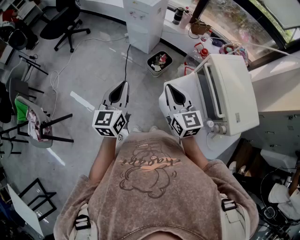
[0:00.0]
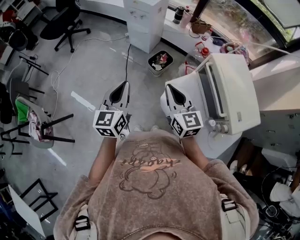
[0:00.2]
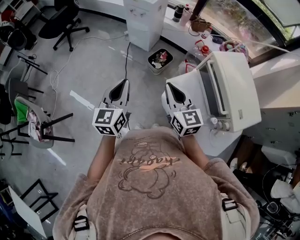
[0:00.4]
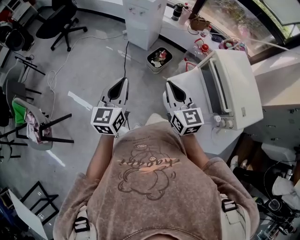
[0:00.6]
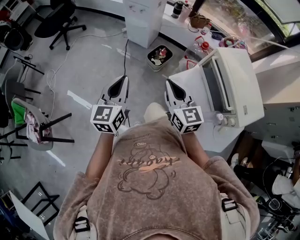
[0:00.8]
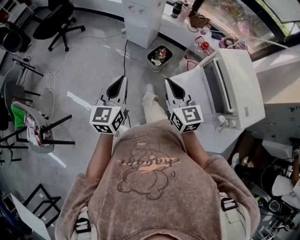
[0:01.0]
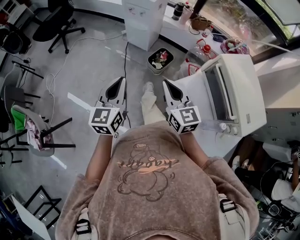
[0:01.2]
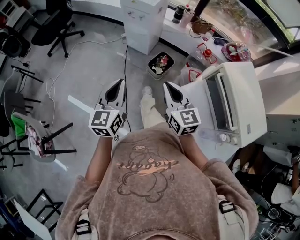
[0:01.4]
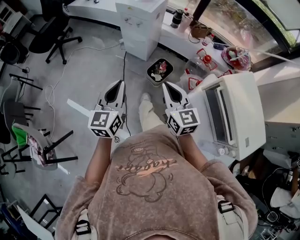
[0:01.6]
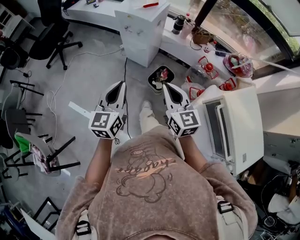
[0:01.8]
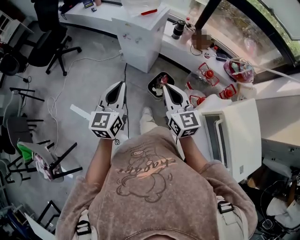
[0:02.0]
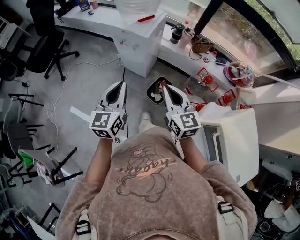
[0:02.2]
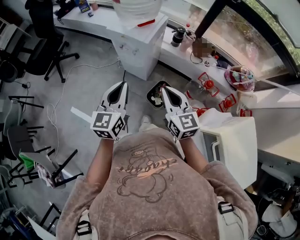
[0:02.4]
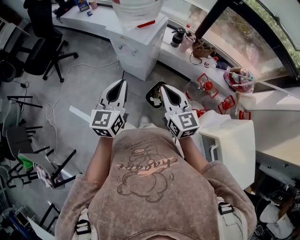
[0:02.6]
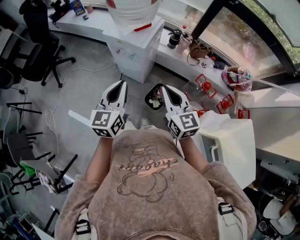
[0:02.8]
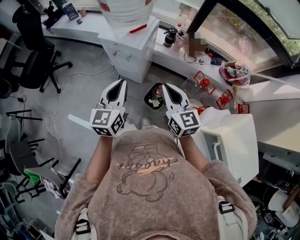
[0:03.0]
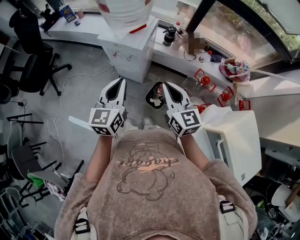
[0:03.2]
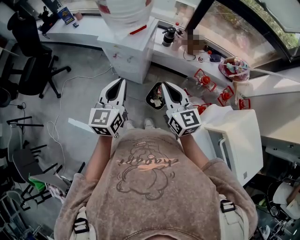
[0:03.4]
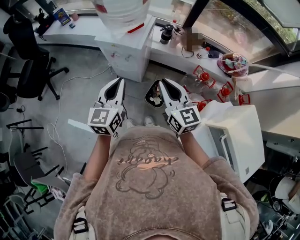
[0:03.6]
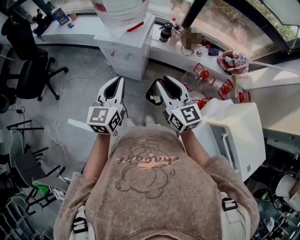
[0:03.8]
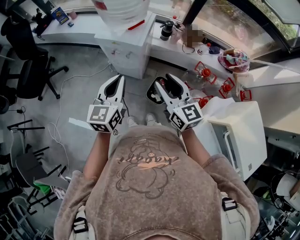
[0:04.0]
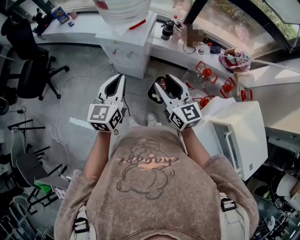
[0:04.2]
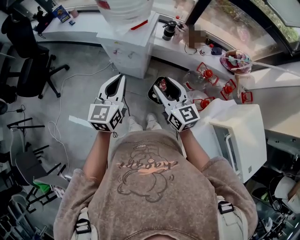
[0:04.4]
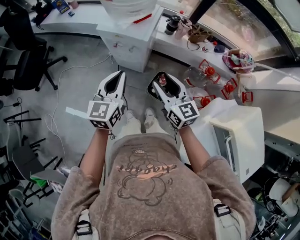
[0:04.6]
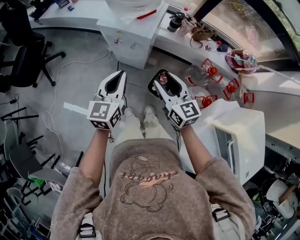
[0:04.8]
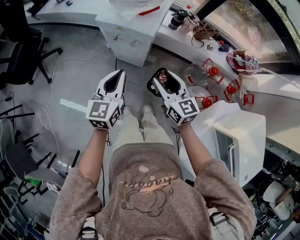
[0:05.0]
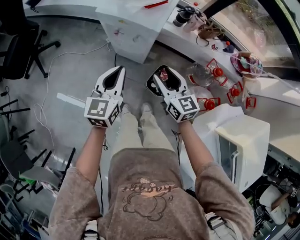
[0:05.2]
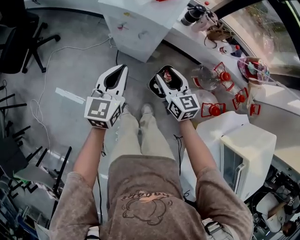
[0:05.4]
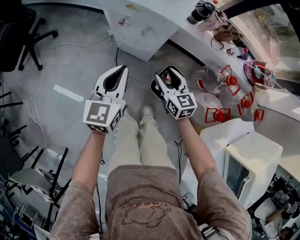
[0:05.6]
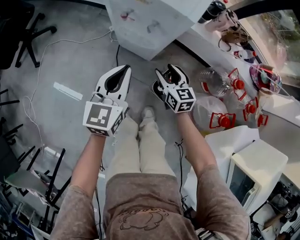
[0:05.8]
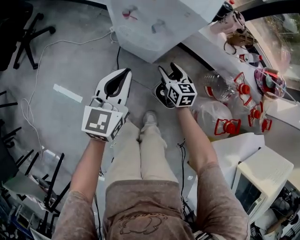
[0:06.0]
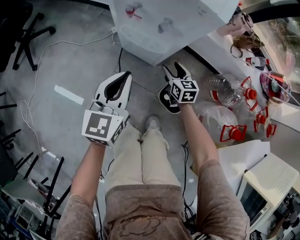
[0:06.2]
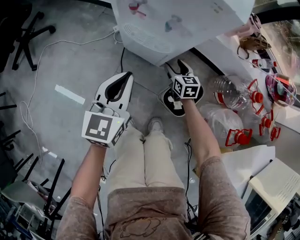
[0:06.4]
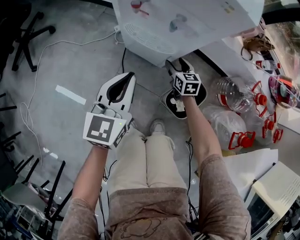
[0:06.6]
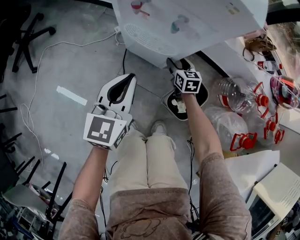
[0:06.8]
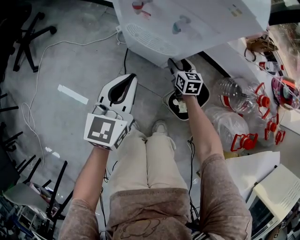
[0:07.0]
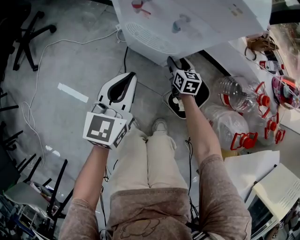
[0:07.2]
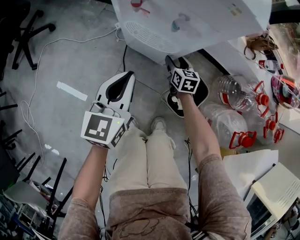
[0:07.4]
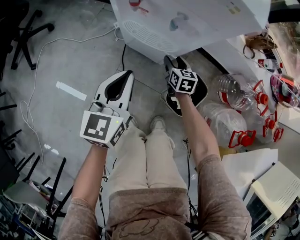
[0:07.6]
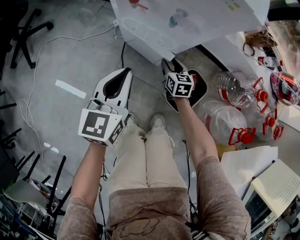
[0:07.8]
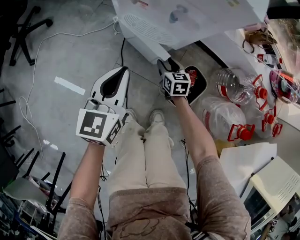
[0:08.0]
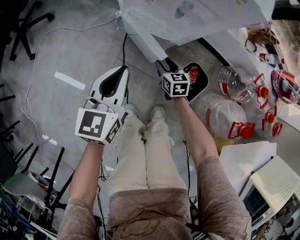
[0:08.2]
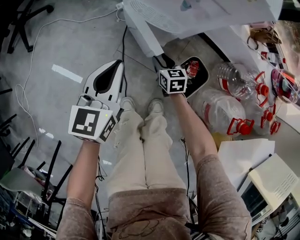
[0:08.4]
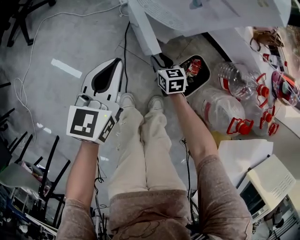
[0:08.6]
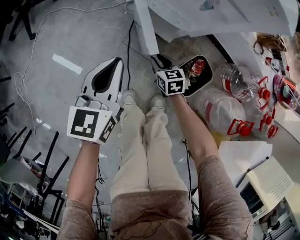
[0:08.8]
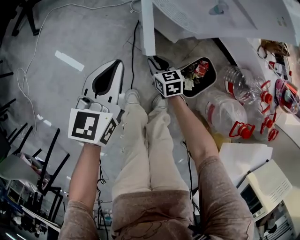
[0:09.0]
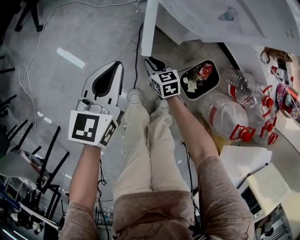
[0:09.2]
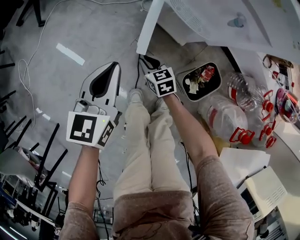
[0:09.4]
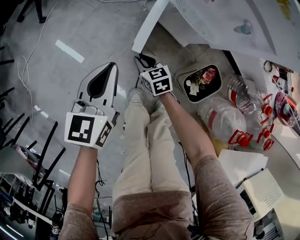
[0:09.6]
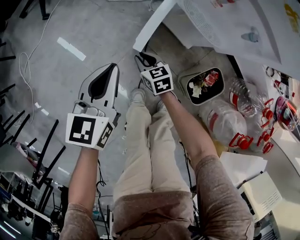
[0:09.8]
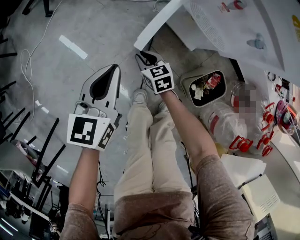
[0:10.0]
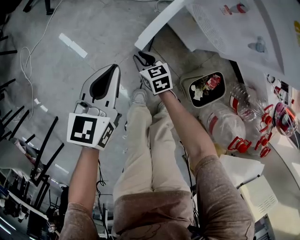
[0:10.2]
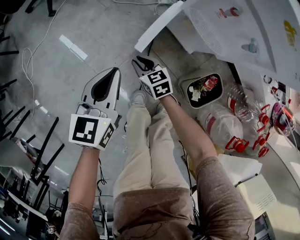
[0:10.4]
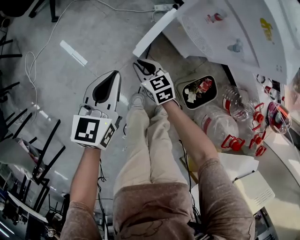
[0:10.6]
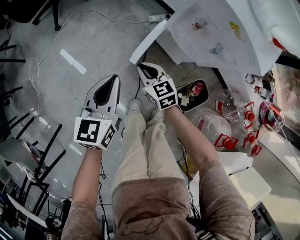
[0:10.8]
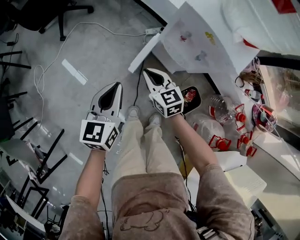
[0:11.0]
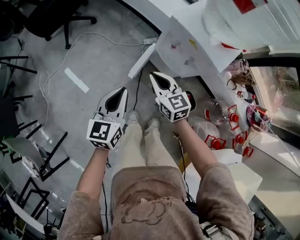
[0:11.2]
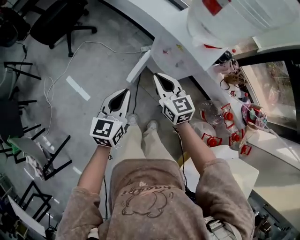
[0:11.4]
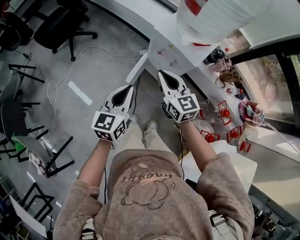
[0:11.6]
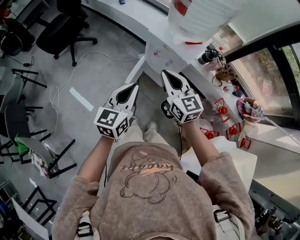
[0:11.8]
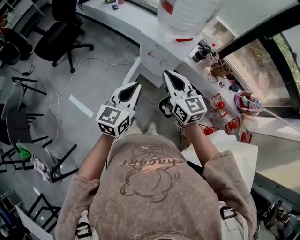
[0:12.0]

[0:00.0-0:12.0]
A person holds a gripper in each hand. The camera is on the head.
0:00.0 to 0:01.6: The two grippers go roughly 15 cm forward.
0:01.6 to 0:03.0: The two grippers go about 30 cm forward.
0:03.0 to 0:04.4: The left gripper ends up approximately 5 cm from where it was. The right gripper moves to the left, roughly 5 cm, and opens its fingers.
0:04.4 to 0:06.0: The left gripper shifts roughly 30 cm downward; the right gripper moves downward, roughly 50 cm, and swivels some 20 degrees.
0:06.0 to 0:07.6: The right gripper moves downward and forward, roughly 15 cm. Meanwhile the left gripper travels downward by about 10 cm.
0:07.6 to 0:09.0: The left gripper is displaced to the left and backward by approximately 10 cm. Meanwhile the right gripper travels to the left and backward by about 20 cm, swivels about 30 degrees, and closes.
0:09.0 to 0:10.4: The right gripper is displaced to the left by about 15 cm. The left gripper travels to the left by approximately 10 cm.
0:10.4 to 0:12.0: The left gripper shifts about 40 cm upward, and swivels some 20 degrees; the right gripper is displaced upward by roughly 60 cm, and tilts its fingers about 30 degrees upward.

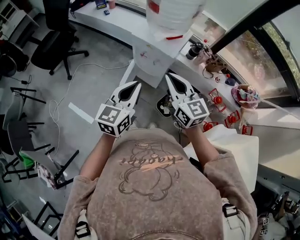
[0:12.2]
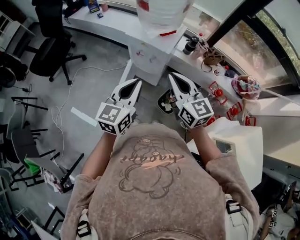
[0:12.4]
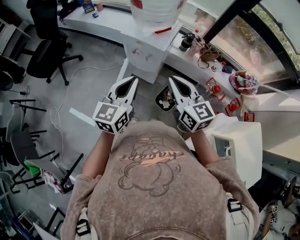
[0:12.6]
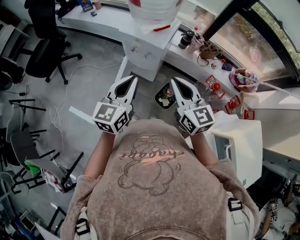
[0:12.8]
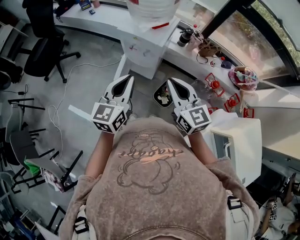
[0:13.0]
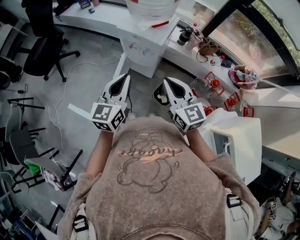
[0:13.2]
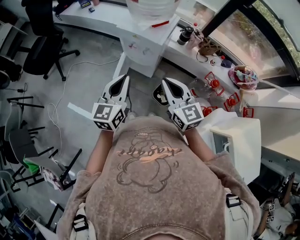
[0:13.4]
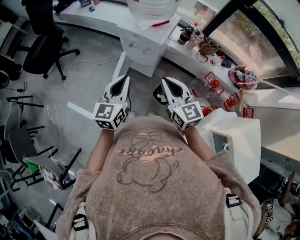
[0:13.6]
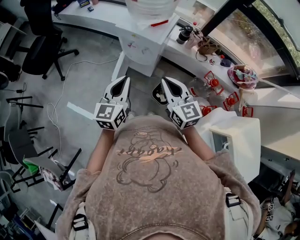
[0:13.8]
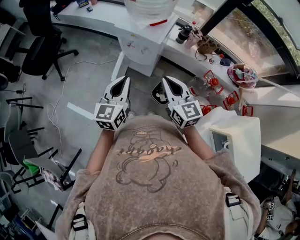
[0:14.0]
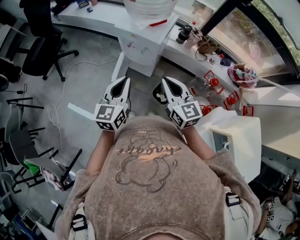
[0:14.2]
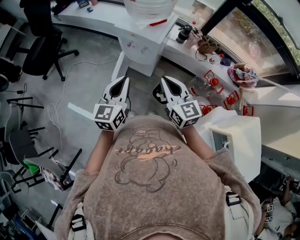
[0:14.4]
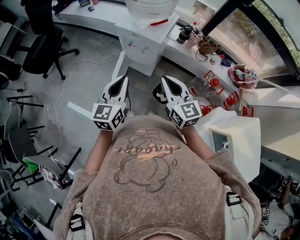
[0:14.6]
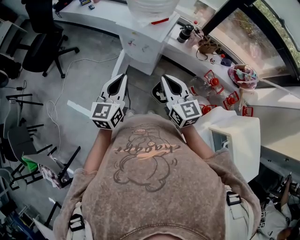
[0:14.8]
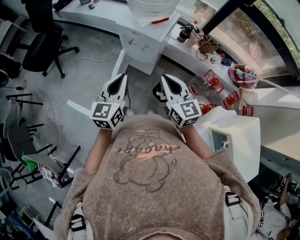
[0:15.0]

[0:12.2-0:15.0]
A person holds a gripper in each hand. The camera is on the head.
0:12.2 to 0:13.6: The right gripper ends up approximately 10 cm from where it was.
0:13.6 to 0:15.0: The grippers stay close to where they were, moving slightly.

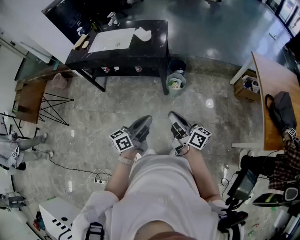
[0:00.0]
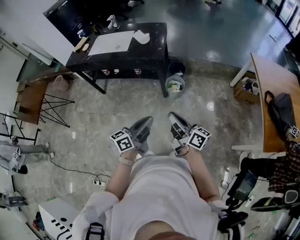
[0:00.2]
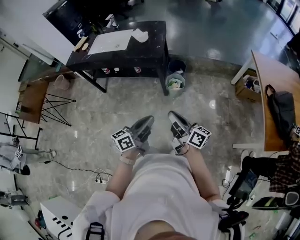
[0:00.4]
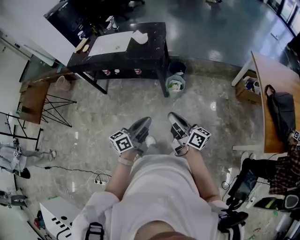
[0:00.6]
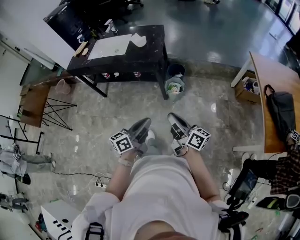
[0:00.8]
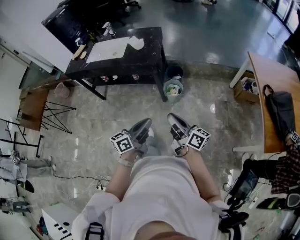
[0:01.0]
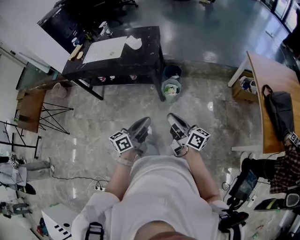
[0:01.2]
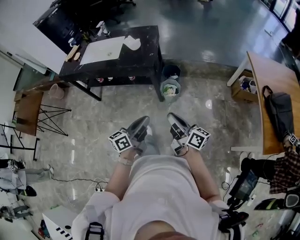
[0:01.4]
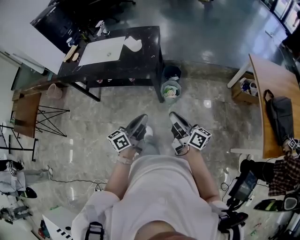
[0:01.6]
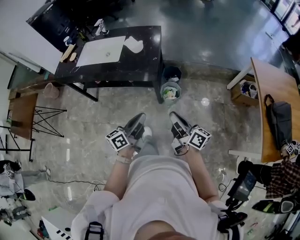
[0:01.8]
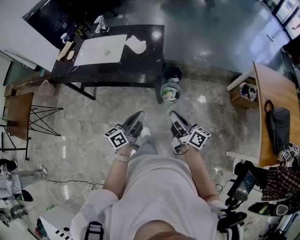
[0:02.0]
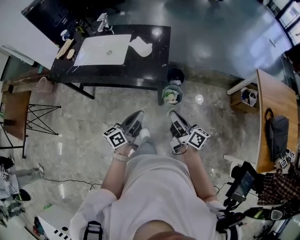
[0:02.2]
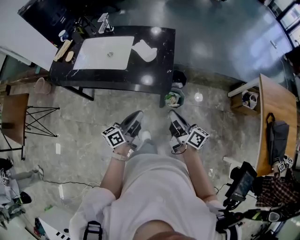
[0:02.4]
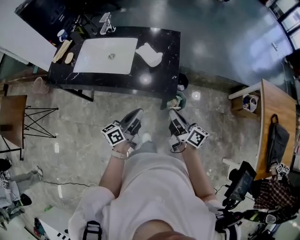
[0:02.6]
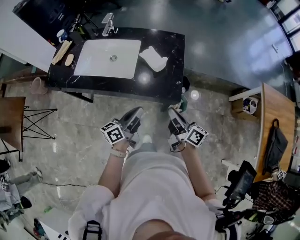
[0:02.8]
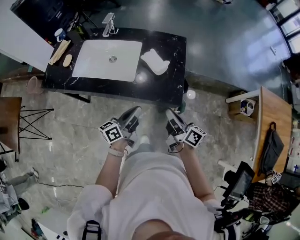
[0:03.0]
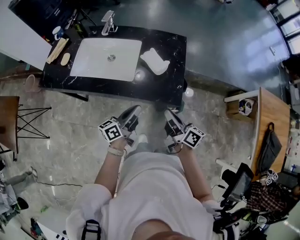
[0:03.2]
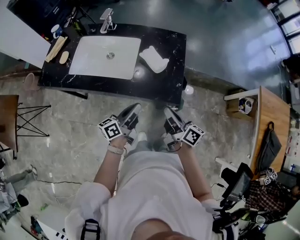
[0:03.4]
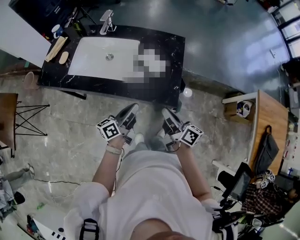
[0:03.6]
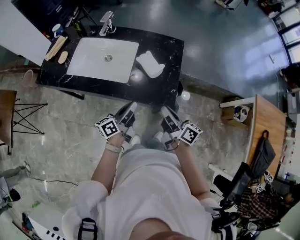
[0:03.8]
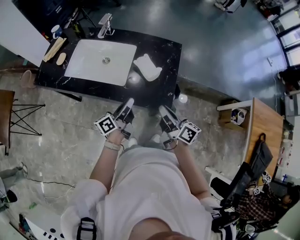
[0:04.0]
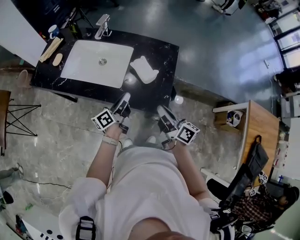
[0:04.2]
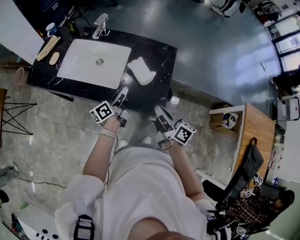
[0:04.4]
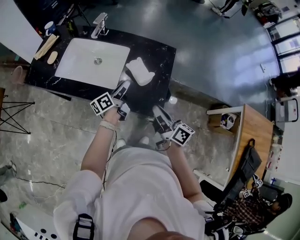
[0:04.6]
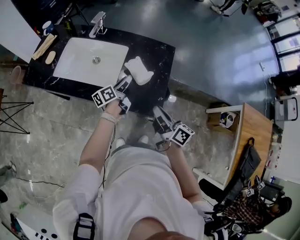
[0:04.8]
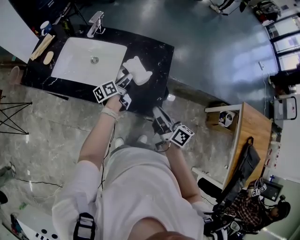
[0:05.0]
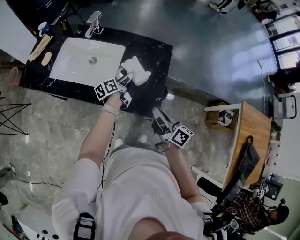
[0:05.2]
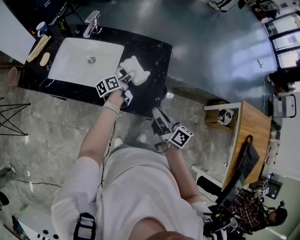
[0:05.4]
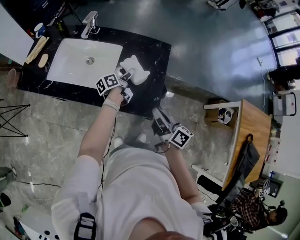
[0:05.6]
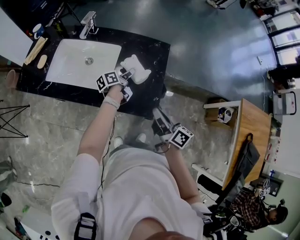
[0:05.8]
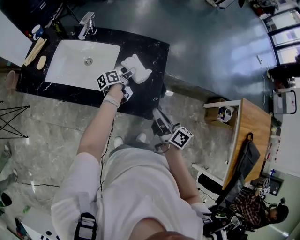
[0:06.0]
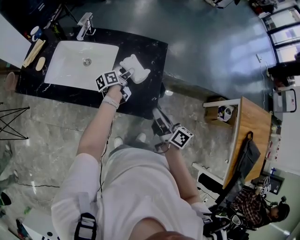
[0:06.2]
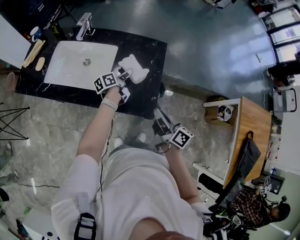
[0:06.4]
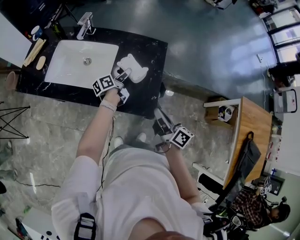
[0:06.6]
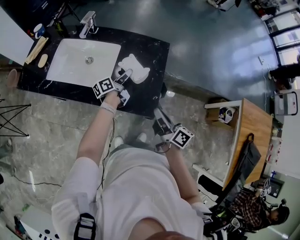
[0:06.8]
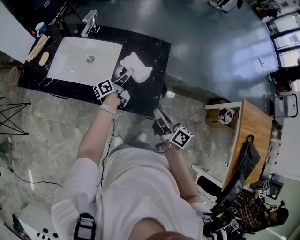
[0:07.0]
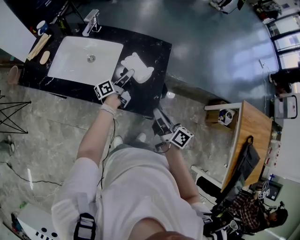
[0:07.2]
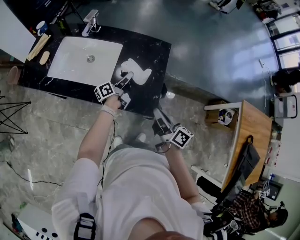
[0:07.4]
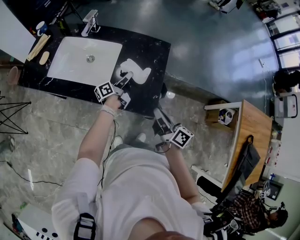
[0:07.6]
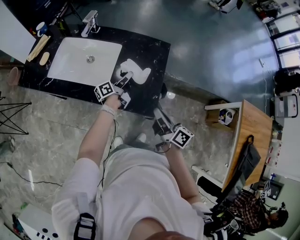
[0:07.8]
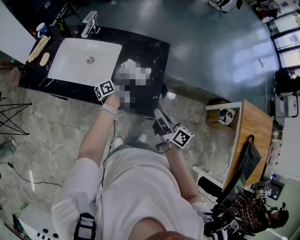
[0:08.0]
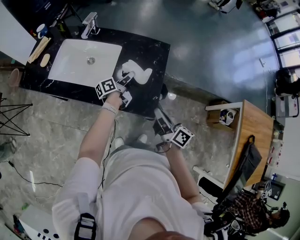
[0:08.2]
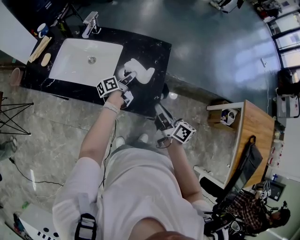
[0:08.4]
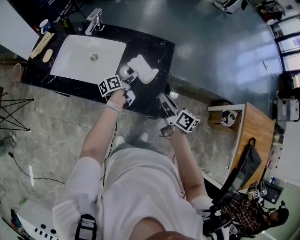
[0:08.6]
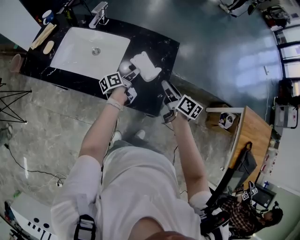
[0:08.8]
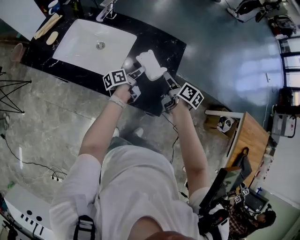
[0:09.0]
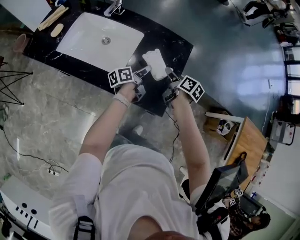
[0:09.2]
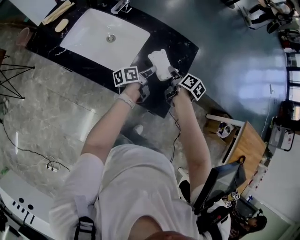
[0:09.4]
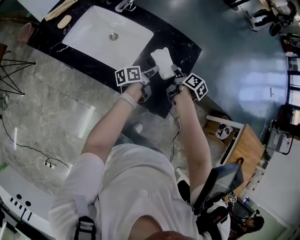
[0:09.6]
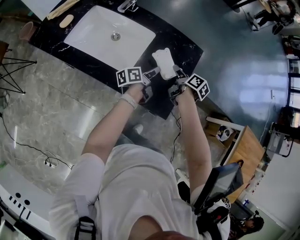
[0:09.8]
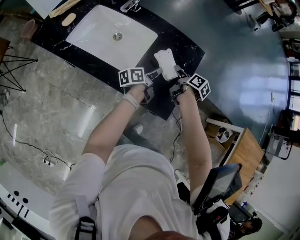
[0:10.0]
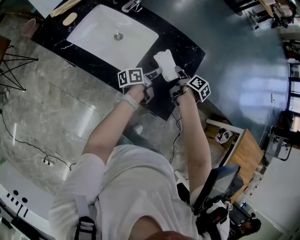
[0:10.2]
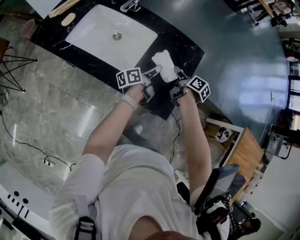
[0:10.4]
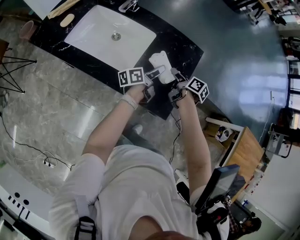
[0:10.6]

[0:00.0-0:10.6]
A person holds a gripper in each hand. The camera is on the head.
0:00.0 to 0:01.6: The two grippers go about 10 cm forward.
0:01.6 to 0:03.0: The grippers both shift forward and to the left by about 40 cm.
0:03.0 to 0:04.6: The right gripper heads forward, covering approximately 10 cm. The left gripper moves forward, roughly 20 cm, rotates roughly 20 degrees, and opens.
0:04.6 to 0:06.0: The left gripper travels forward, to the right and downward by about 15 cm, and swivels roughly 20 degrees.
0:06.0 to 0:07.6: The left gripper rotates approximately 20 degrees, and closes its fingers.
0:07.6 to 0:09.0: The right gripper moves forward, approximately 15 cm, swivels roughly 20 degrees, and opens.
0:09.0 to 0:10.6: The left gripper opens. Meanwhile the right gripper moves downward, about 5 cm.
